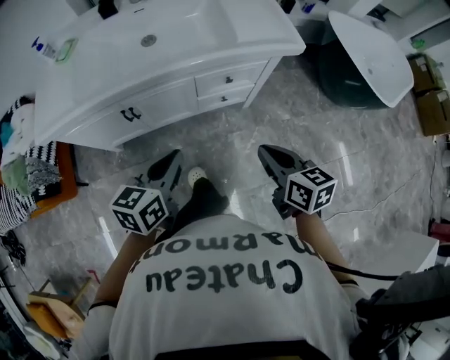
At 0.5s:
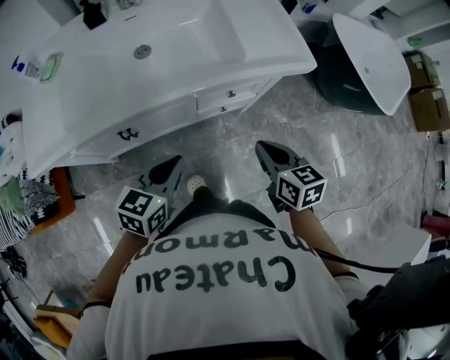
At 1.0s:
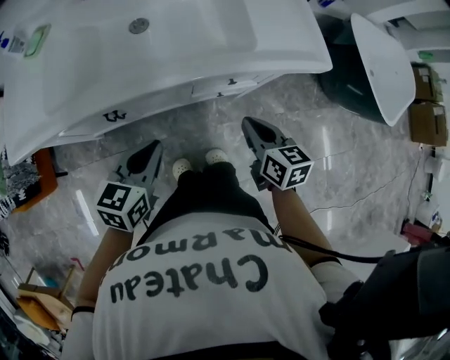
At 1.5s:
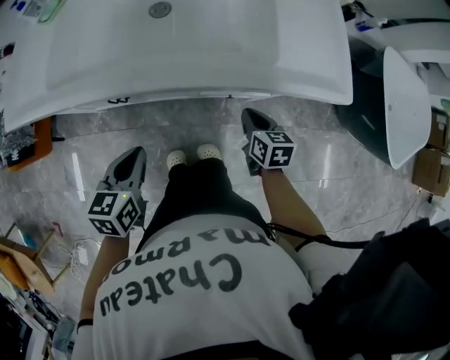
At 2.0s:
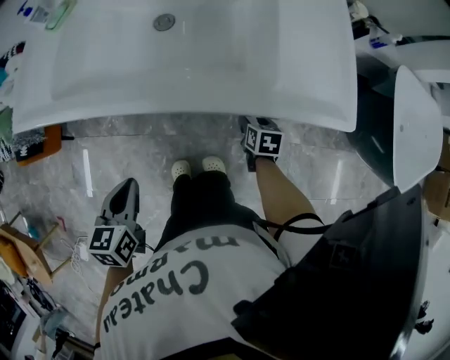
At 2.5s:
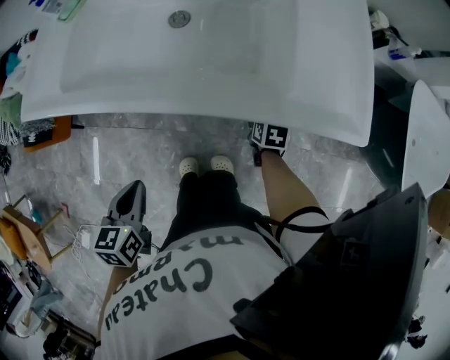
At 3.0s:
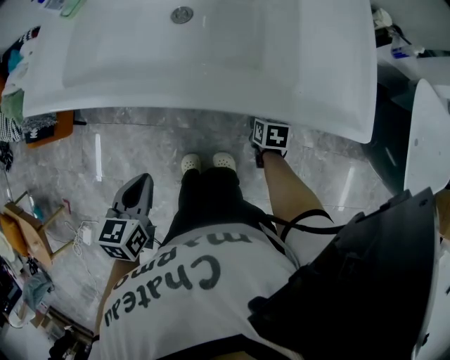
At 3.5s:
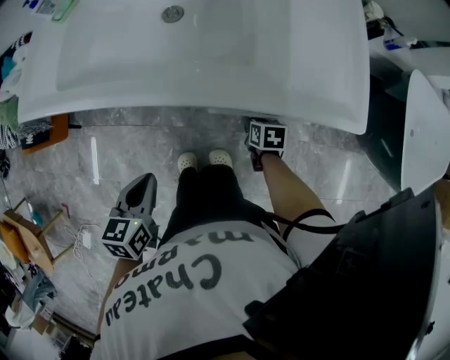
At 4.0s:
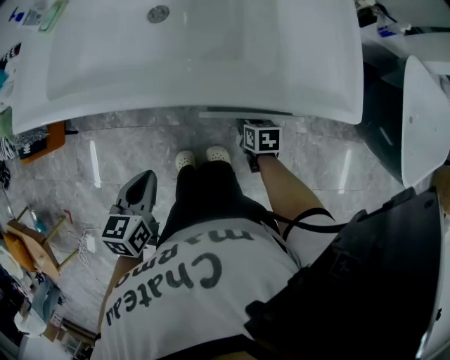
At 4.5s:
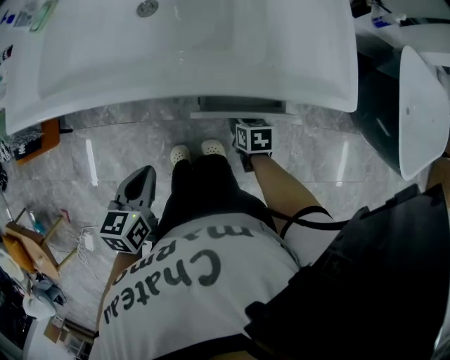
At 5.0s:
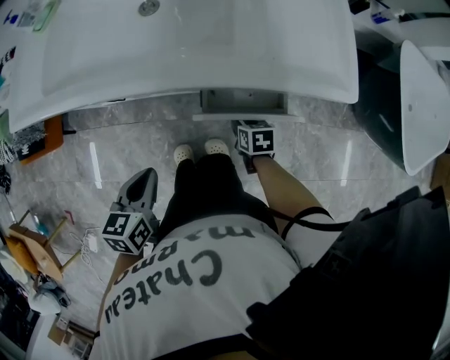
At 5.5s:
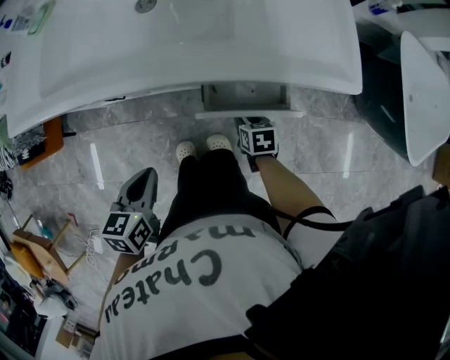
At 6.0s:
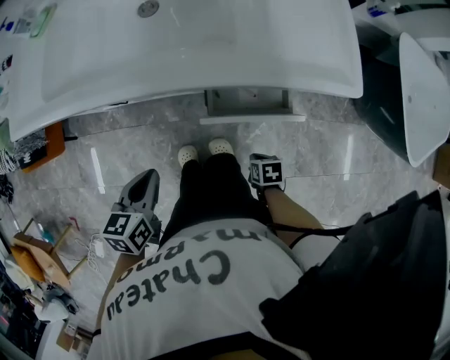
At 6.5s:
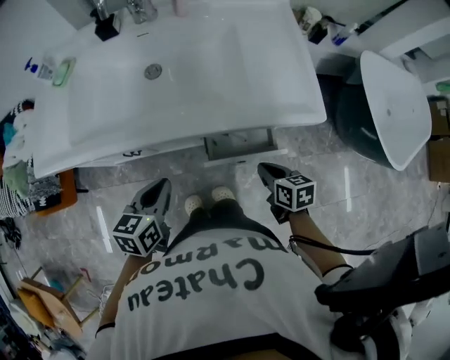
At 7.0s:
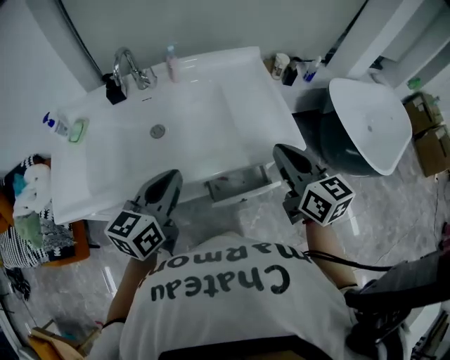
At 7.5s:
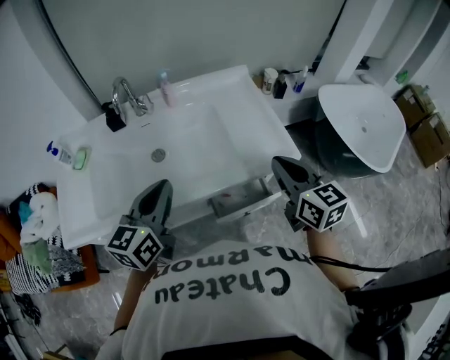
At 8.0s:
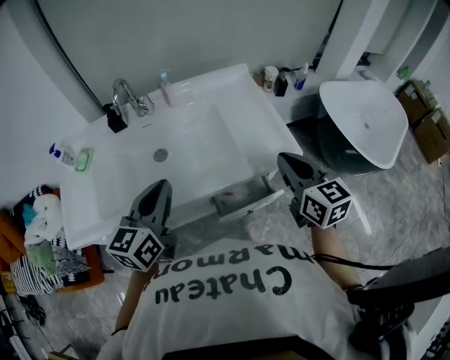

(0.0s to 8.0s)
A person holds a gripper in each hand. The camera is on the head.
0.0s - 2.0s: The left gripper travels downward, to the left and forward by some 15 cm, and swivels some 40 degrees, while the right gripper is displaced forward and downward by roughly 40 cm, changes its angle by about 30 degrees, and opens.
2.0s - 4.0s: The left gripper changes place by roughly 5 cm. Meanwhile the right gripper ends up approximately 5 cm from where it was.
4.0s - 6.0s: The right gripper goes some 20 cm backward, and closes up.
6.0s - 8.0s: The right gripper is displaced upward by roughly 50 cm, and tilts its fingers roughly 60 degrees upward, while the left gripper goes some 30 cm upward, and tilts its fingers about 40 degrees upward.

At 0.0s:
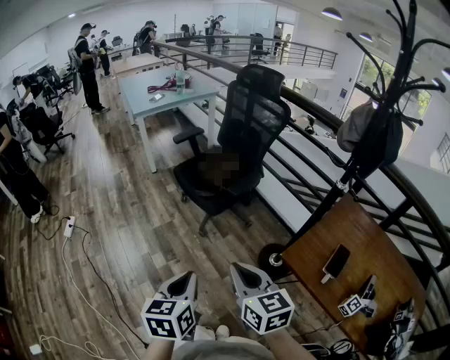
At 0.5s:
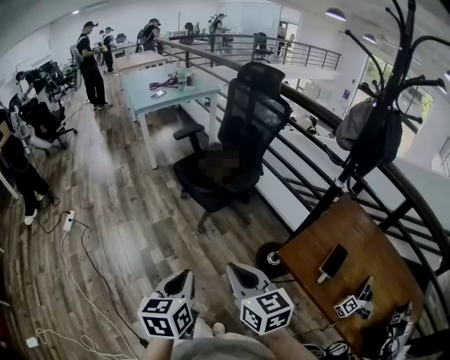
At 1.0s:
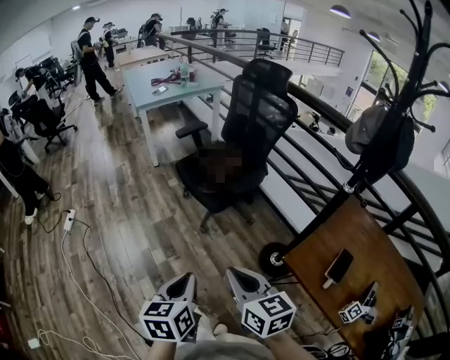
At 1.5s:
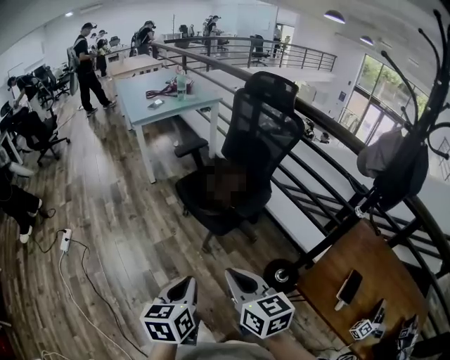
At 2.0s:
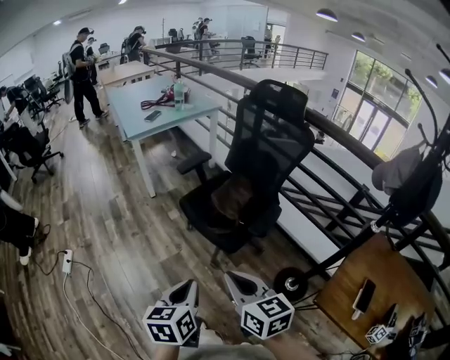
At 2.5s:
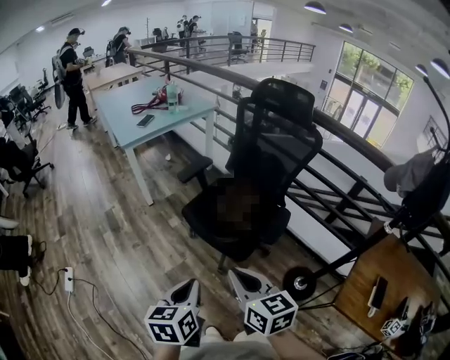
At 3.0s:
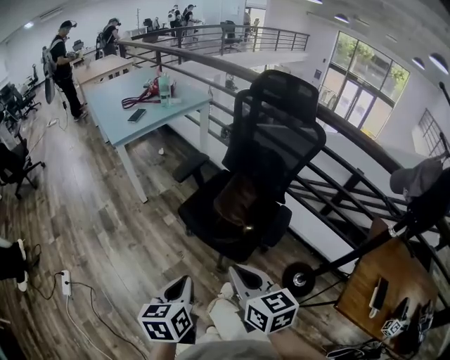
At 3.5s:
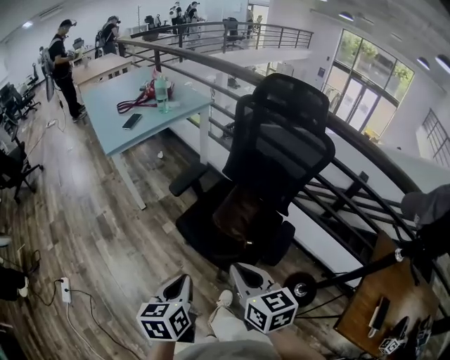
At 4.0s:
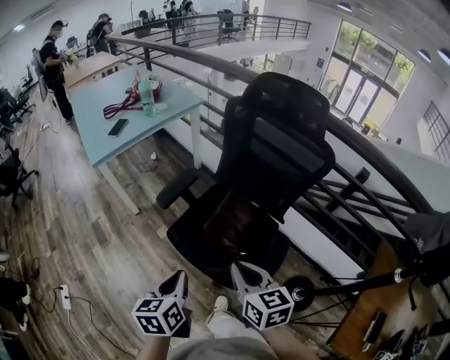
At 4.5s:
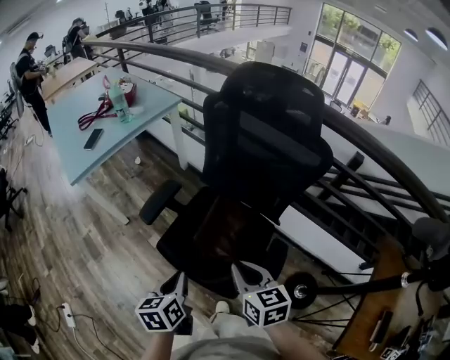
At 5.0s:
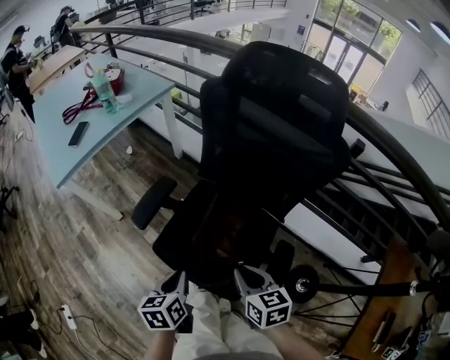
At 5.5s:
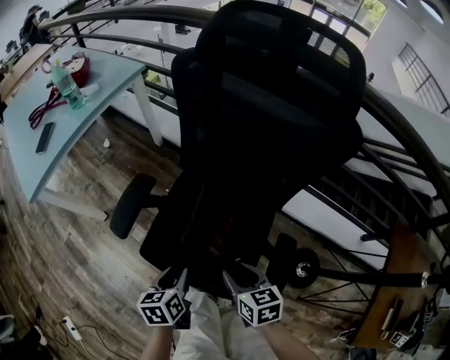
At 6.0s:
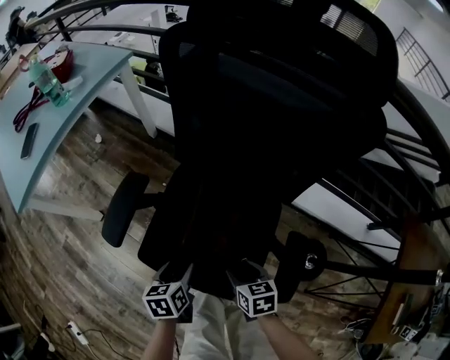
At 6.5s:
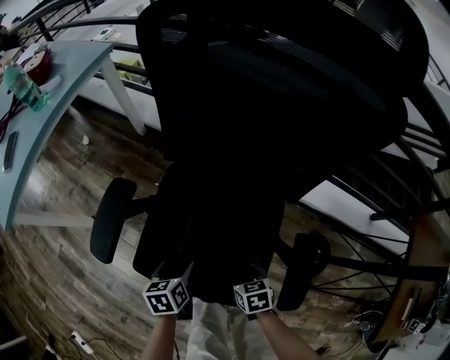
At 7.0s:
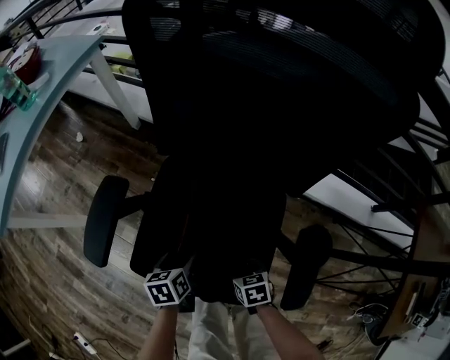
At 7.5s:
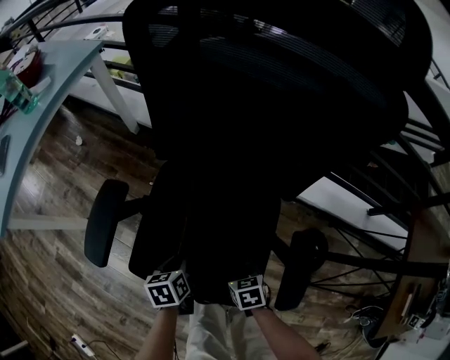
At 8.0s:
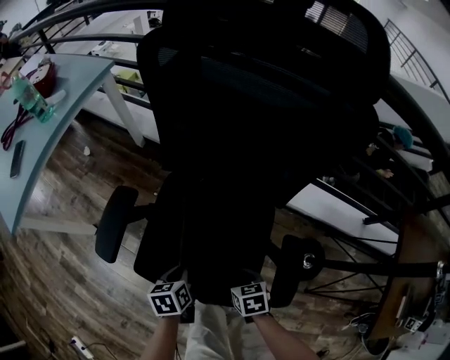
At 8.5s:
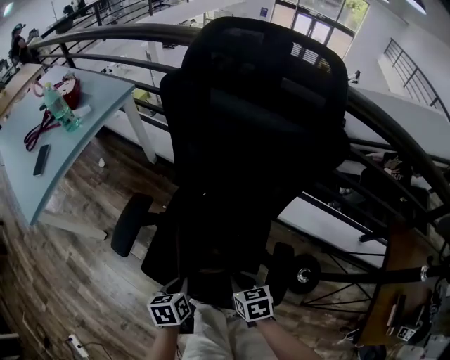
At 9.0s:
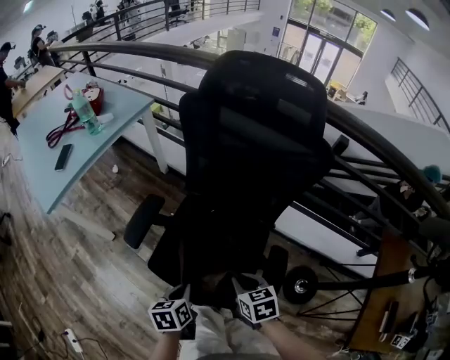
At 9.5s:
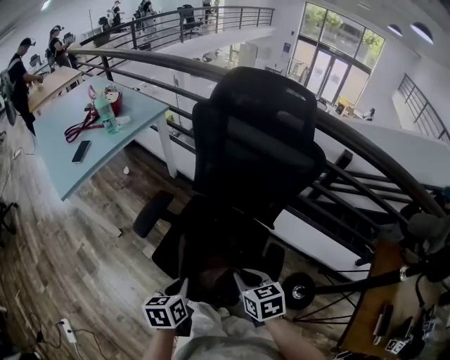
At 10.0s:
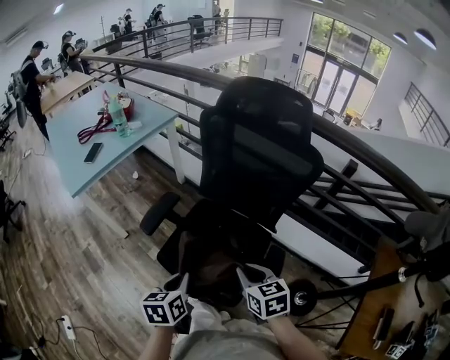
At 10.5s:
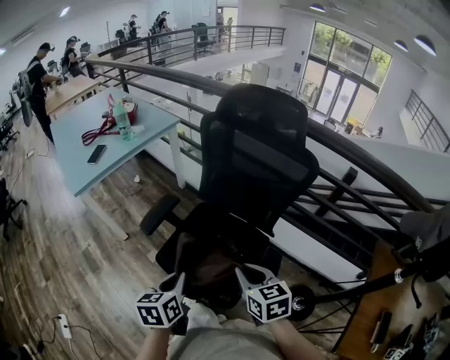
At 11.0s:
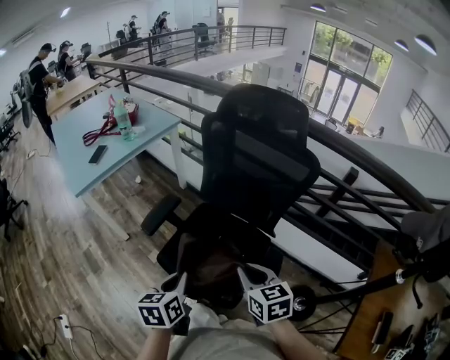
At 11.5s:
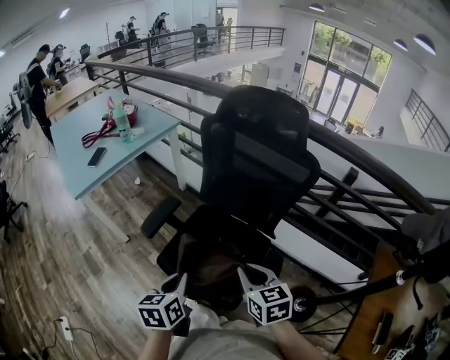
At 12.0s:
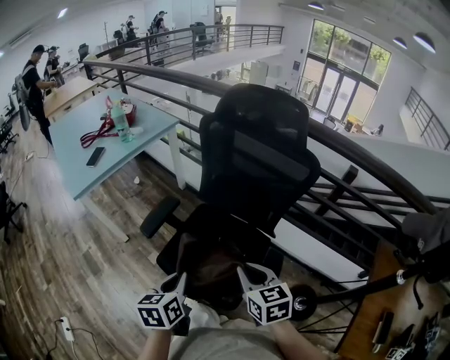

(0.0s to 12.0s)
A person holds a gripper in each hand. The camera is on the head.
0.0s - 2.0s: The two grippers go about 25 cm forward and to the left.
2.0s - 4.0s: Both grippers travel together forward, approximately 35 cm.
4.0s - 6.0s: The grippers both shift downward and forward by approximately 35 cm. The left gripper swivels roughly 30 degrees, and opens. Meanwhile the right gripper turns by about 30 degrees, and opens up.
6.0s - 8.0s: The right gripper is displaced downward by approximately 5 cm, and closes up. The left gripper closes its fingers.
8.0s - 10.0s: The right gripper heads upward, covering about 30 cm, and changes its angle by about 30 degrees. Meanwhile the left gripper is displaced upward and backward by approximately 30 cm, and changes its angle by about 20 degrees.
10.0s - 12.0s: The grippers move only a little.

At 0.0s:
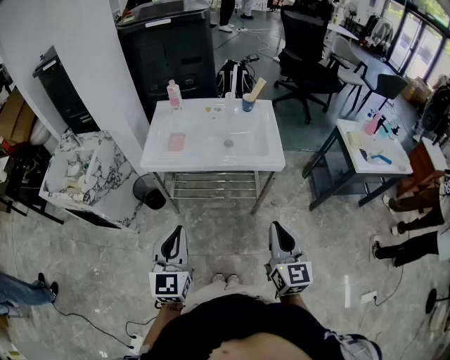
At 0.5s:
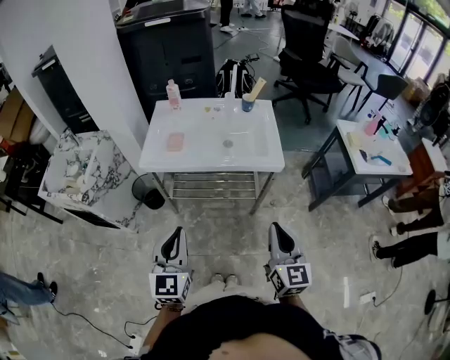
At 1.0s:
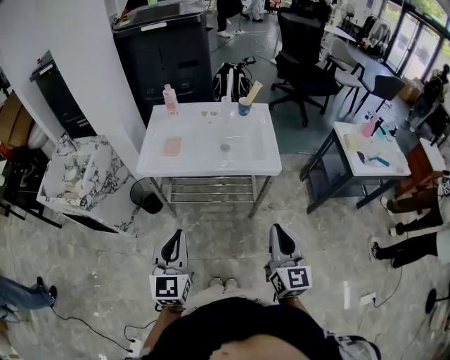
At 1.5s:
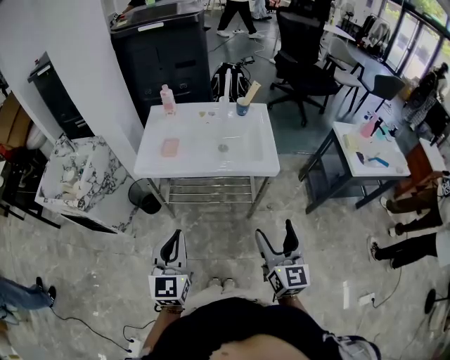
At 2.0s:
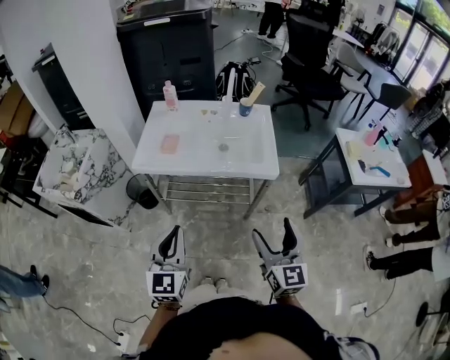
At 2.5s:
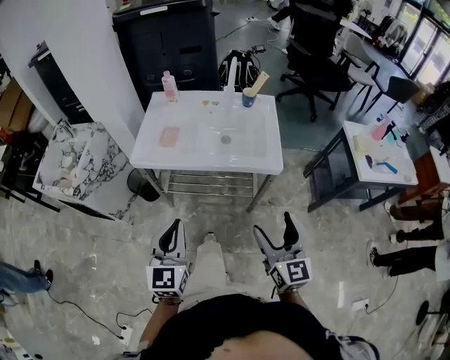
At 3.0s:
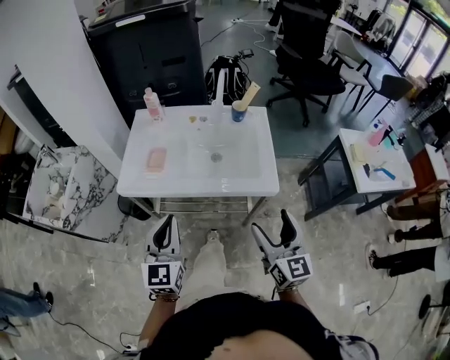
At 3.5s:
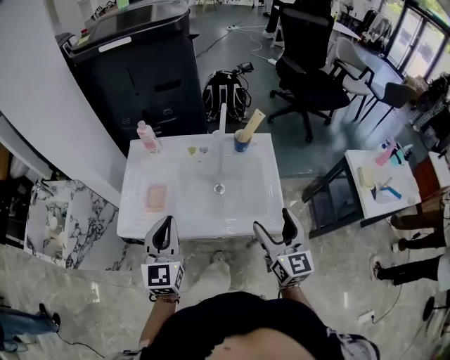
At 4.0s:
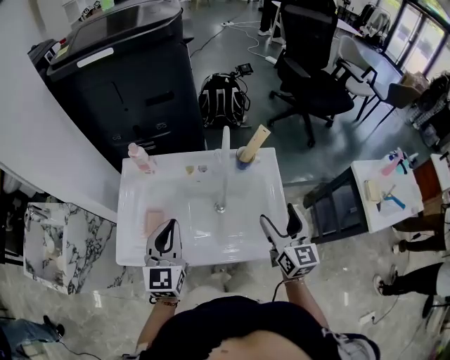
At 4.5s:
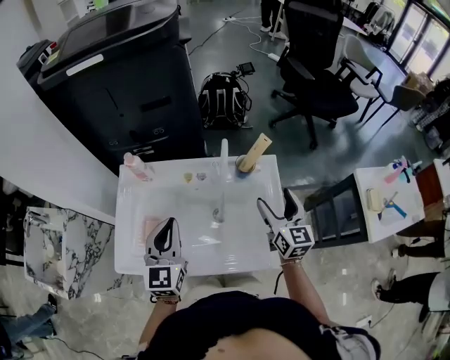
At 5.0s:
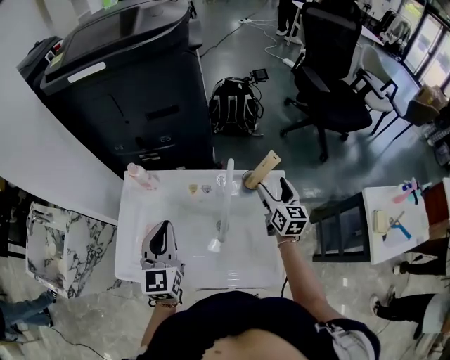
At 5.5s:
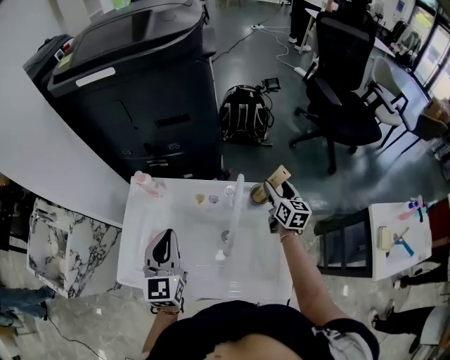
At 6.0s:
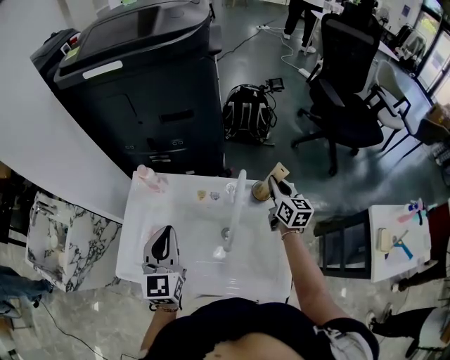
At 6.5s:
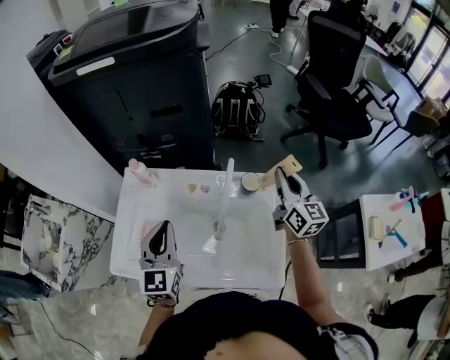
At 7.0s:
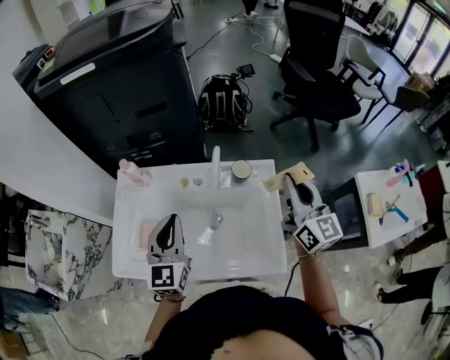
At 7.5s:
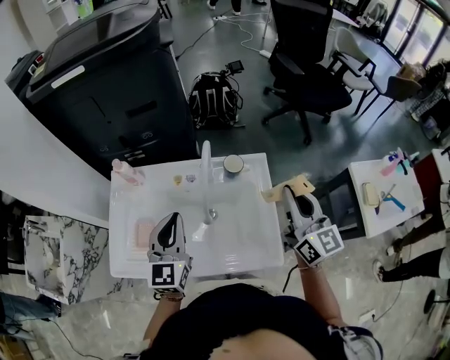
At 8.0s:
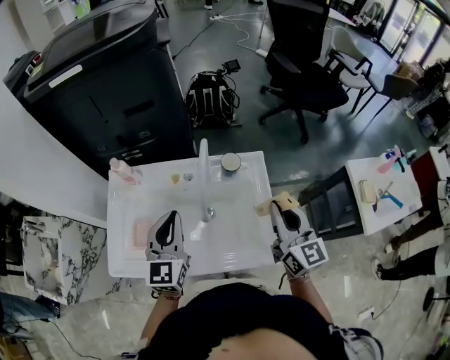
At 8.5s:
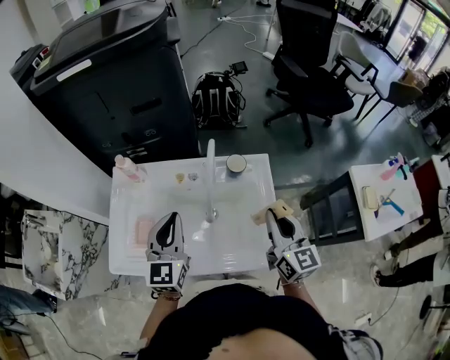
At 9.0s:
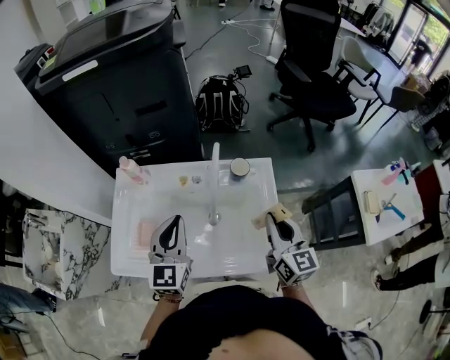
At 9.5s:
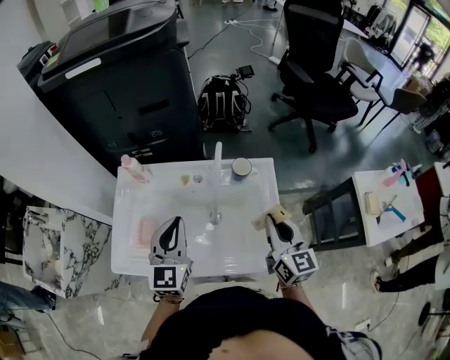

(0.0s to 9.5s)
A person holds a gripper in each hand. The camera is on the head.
0.0s - 2.0s: The right gripper opens up.
2.0s - 4.0s: The pair of grippers is taken forward, roughly 40 cm.
4.0s - 5.5s: The left gripper is displaced forward by roughly 10 cm; the right gripper is displaced forward by some 30 cm.
5.5s - 7.5s: The right gripper moves backward and upward, some 30 cm, turns by approximately 20 degrees, and closes up; the left gripper moves to the right, roughly 5 cm.
7.5s - 9.5s: The right gripper heads downward and to the left, covering some 10 cm.
